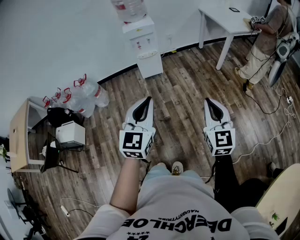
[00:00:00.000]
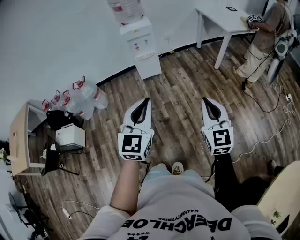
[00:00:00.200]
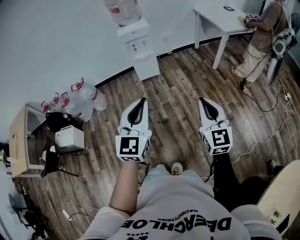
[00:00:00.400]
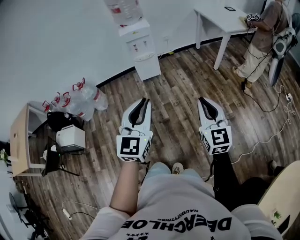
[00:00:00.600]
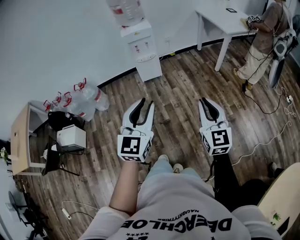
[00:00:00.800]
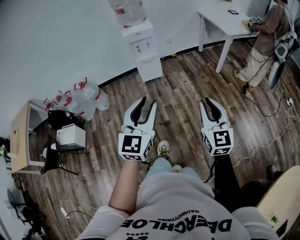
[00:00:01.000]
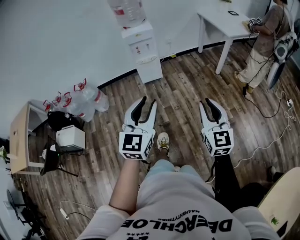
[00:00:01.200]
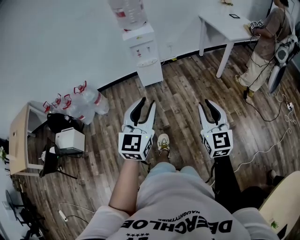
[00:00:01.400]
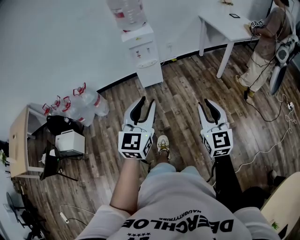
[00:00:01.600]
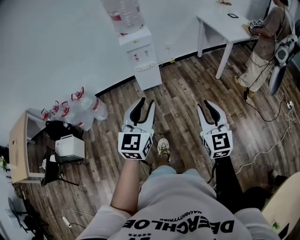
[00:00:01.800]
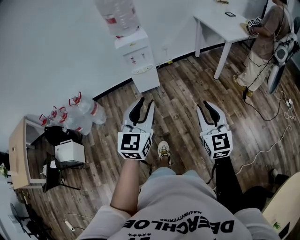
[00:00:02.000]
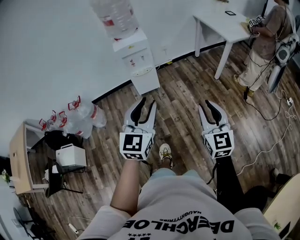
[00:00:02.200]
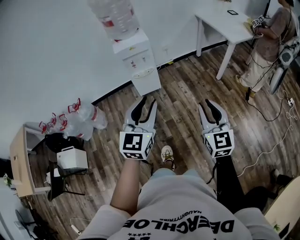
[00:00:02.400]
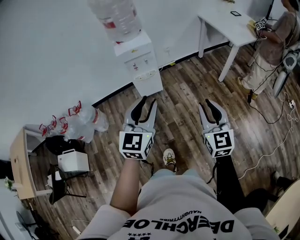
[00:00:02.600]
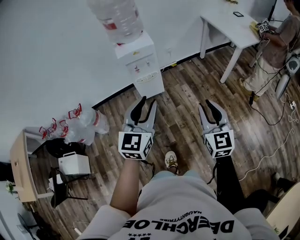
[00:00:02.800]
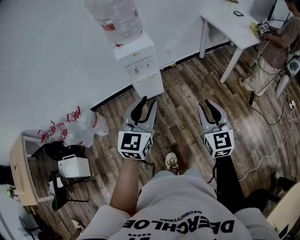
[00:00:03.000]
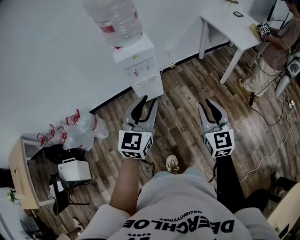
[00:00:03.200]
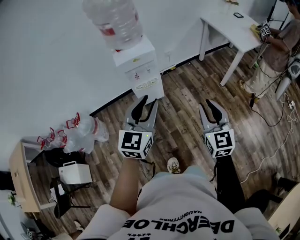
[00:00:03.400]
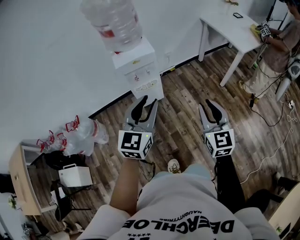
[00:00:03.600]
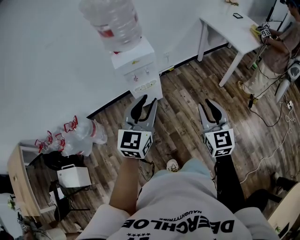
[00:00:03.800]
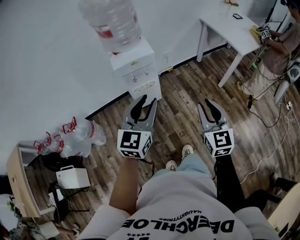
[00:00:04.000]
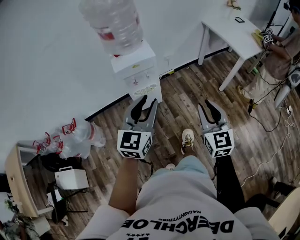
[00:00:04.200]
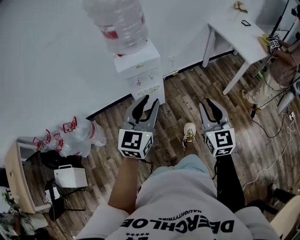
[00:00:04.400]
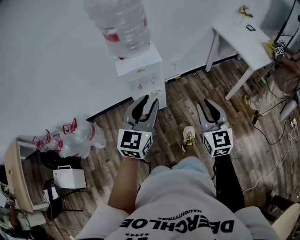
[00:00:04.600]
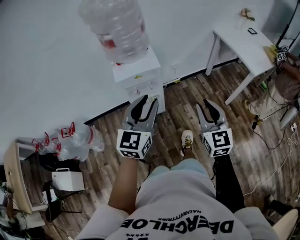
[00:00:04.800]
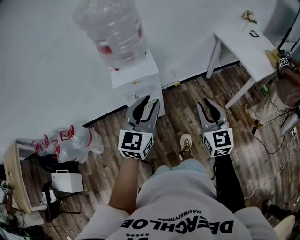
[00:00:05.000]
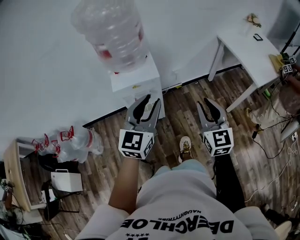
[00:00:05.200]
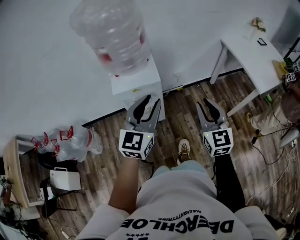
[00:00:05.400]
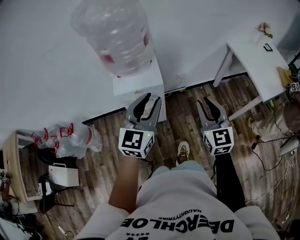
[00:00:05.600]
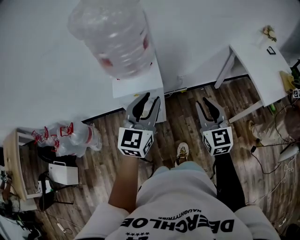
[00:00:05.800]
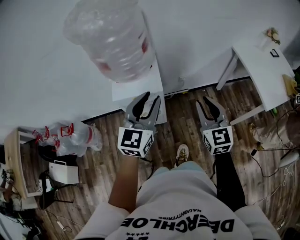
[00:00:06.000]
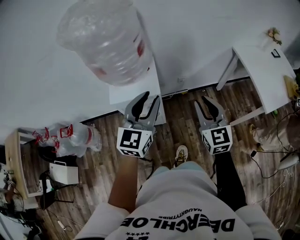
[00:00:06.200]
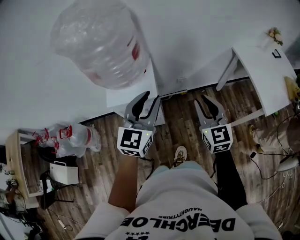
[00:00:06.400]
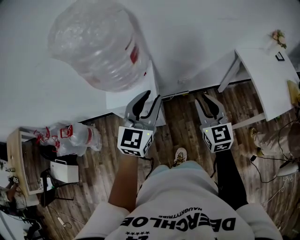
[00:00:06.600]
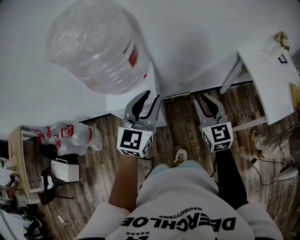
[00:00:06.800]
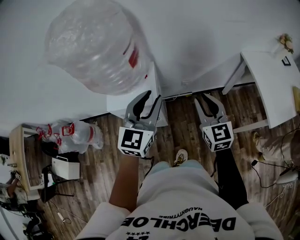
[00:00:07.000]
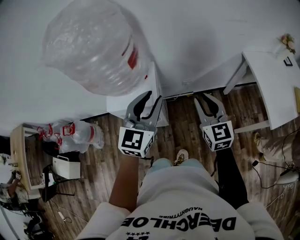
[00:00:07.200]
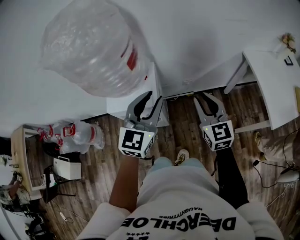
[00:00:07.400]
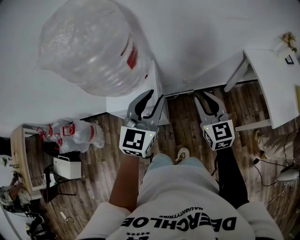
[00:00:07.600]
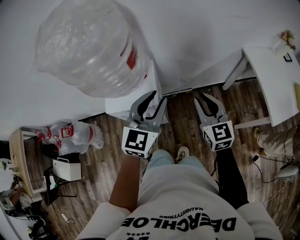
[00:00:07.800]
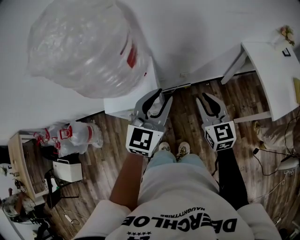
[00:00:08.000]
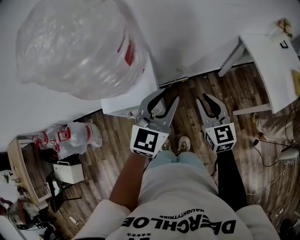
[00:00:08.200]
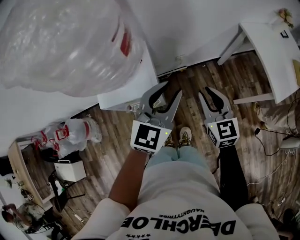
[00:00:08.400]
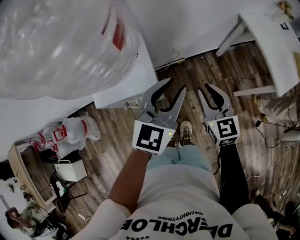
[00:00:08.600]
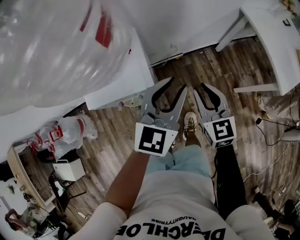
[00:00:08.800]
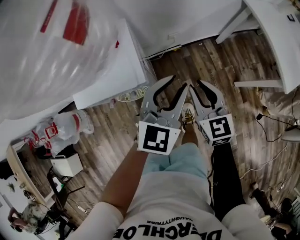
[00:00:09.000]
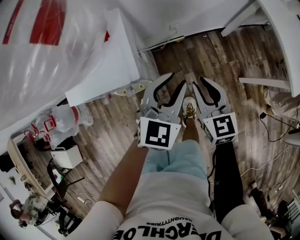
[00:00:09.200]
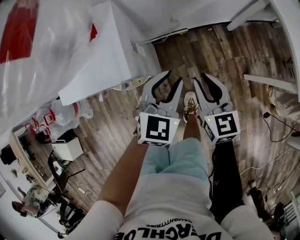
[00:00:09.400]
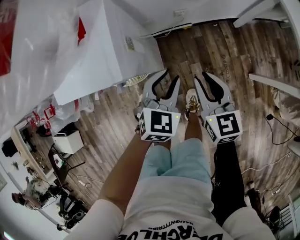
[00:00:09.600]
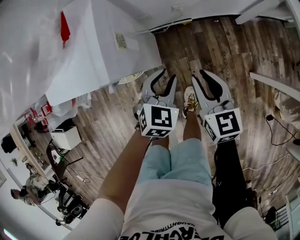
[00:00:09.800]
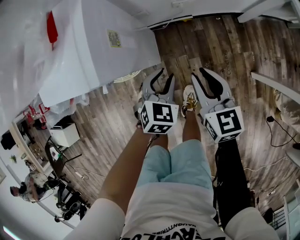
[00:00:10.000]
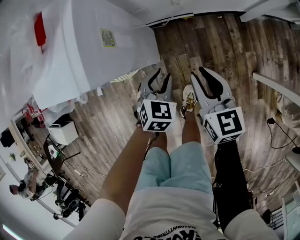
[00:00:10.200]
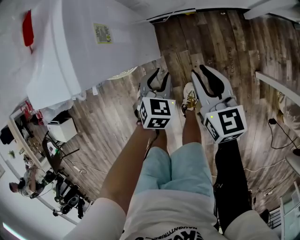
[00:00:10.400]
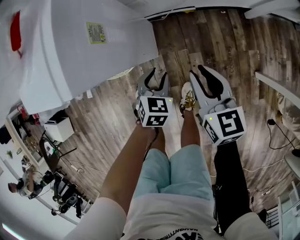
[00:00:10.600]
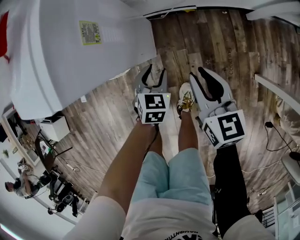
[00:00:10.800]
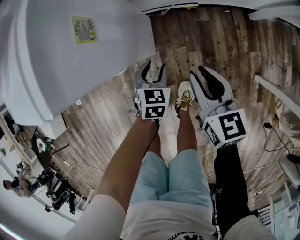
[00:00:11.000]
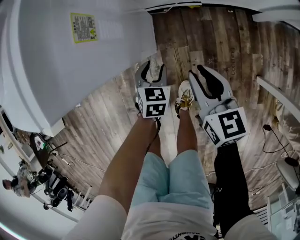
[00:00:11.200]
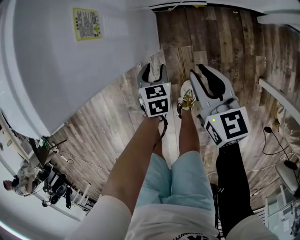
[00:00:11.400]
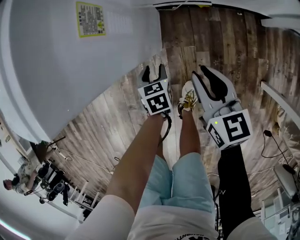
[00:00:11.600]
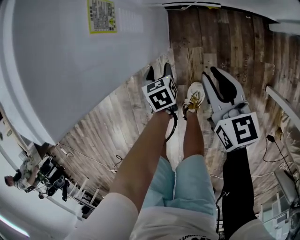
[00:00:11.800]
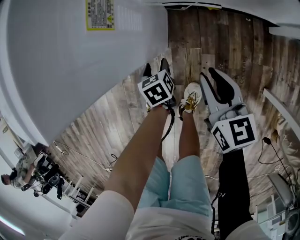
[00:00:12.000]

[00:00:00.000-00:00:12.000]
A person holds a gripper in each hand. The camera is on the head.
00:00:00.000 to 00:00:01.600: The grippers both shift forward by about 5 cm.
00:00:01.600 to 00:00:03.000: The grippers both shift forward by roughly 30 cm.
00:00:03.000 to 00:00:04.400: Both grippers move forward, roughly 15 cm.
00:00:04.400 to 00:00:06.000: Both grippers travel together forward, approximately 25 cm.
00:00:06.000 to 00:00:07.600: The right gripper heads forward, covering some 15 cm; the left gripper heads forward and to the right, covering roughly 10 cm.
00:00:07.600 to 00:00:09.000: The left gripper shifts roughly 15 cm downward and to the right, while the right gripper moves downward, approximately 15 cm.
00:00:09.000 to 00:00:10.400: The left gripper heads downward, covering some 35 cm, and points its fingers approximately 40 degrees further downward. The right gripper moves downward, some 20 cm, and turns by approximately 20 degrees.
00:00:10.400 to 00:00:12.000: The right gripper heads downward, covering roughly 10 cm; the left gripper heads downward and to the left, covering approximately 20 cm, and rotates around the line of its fingers by approximately 60 degrees, counterclockwise from behind.

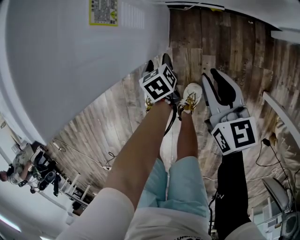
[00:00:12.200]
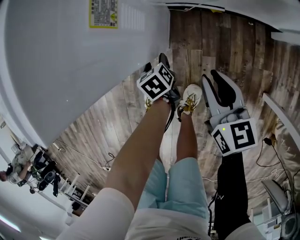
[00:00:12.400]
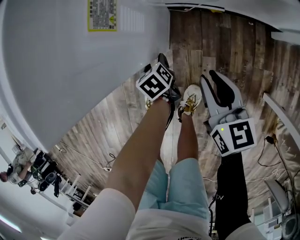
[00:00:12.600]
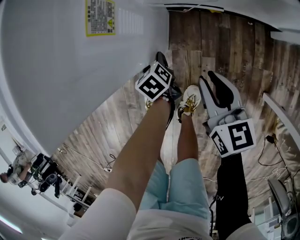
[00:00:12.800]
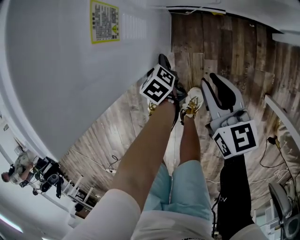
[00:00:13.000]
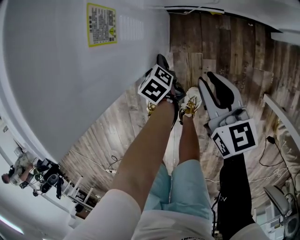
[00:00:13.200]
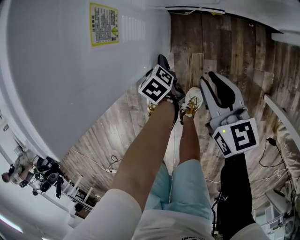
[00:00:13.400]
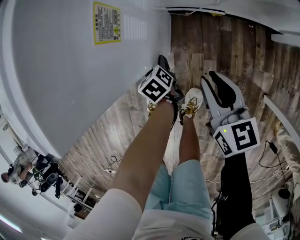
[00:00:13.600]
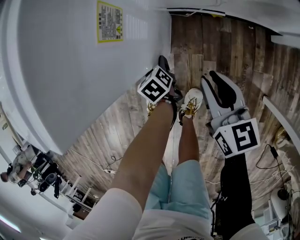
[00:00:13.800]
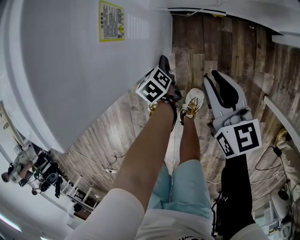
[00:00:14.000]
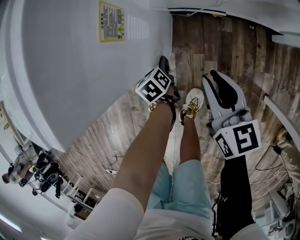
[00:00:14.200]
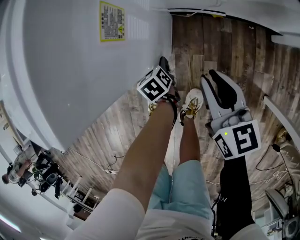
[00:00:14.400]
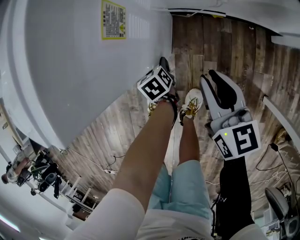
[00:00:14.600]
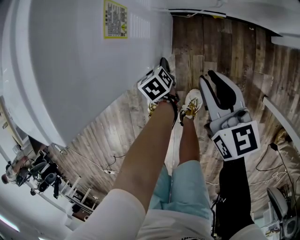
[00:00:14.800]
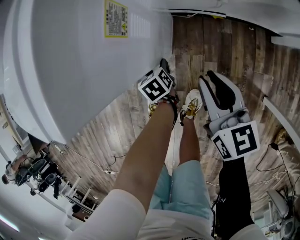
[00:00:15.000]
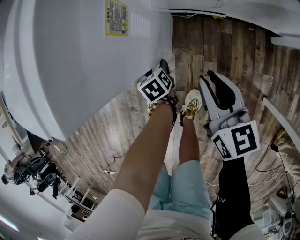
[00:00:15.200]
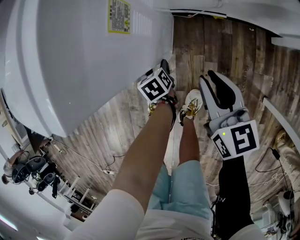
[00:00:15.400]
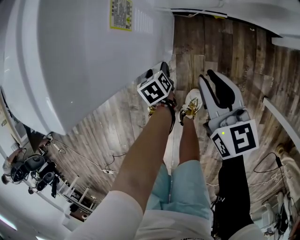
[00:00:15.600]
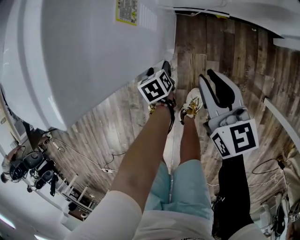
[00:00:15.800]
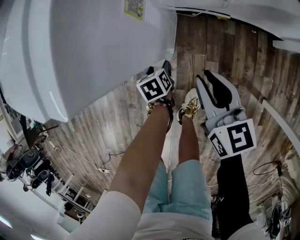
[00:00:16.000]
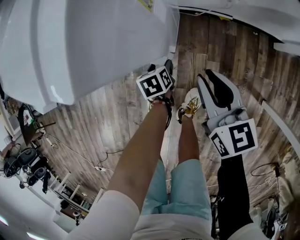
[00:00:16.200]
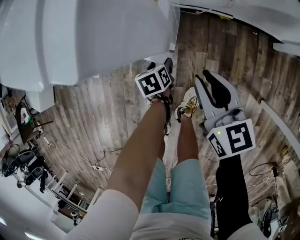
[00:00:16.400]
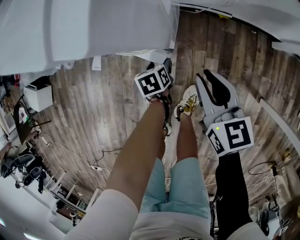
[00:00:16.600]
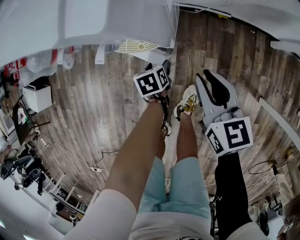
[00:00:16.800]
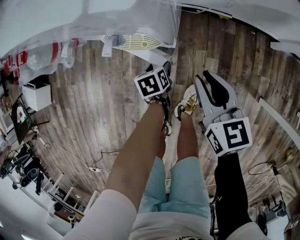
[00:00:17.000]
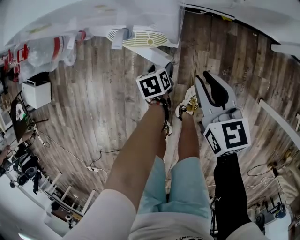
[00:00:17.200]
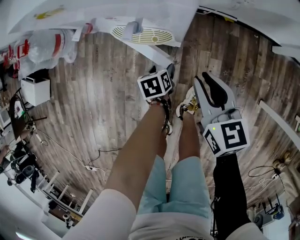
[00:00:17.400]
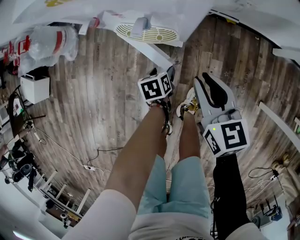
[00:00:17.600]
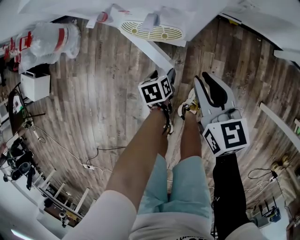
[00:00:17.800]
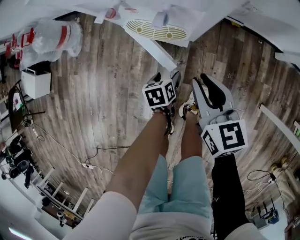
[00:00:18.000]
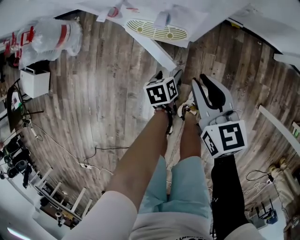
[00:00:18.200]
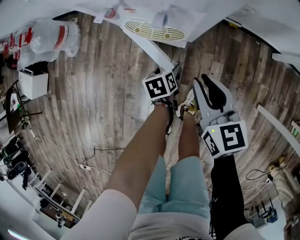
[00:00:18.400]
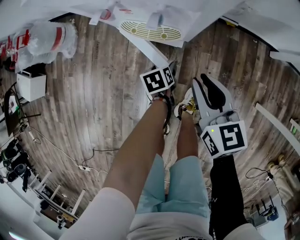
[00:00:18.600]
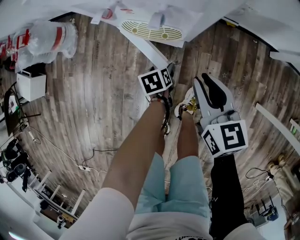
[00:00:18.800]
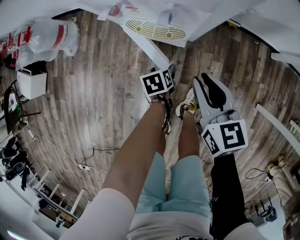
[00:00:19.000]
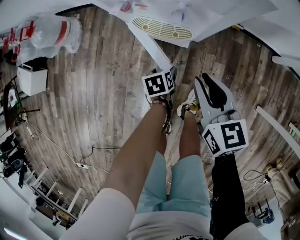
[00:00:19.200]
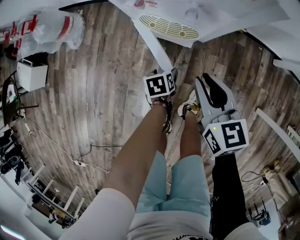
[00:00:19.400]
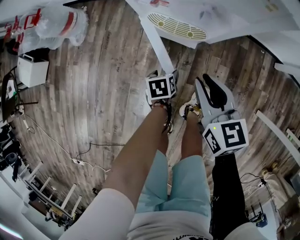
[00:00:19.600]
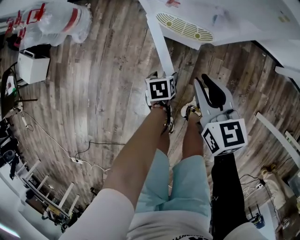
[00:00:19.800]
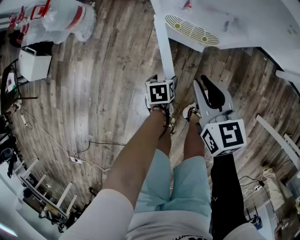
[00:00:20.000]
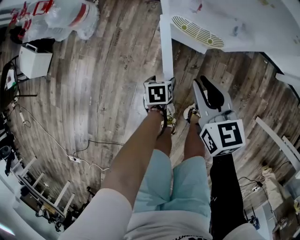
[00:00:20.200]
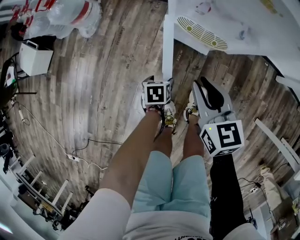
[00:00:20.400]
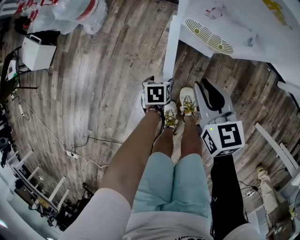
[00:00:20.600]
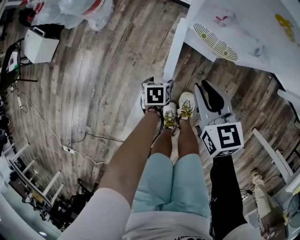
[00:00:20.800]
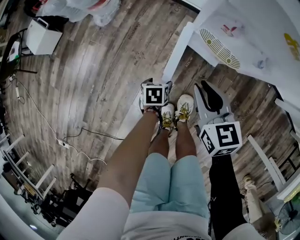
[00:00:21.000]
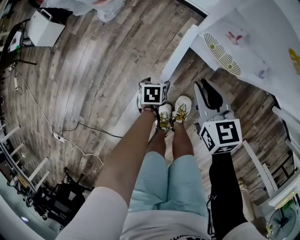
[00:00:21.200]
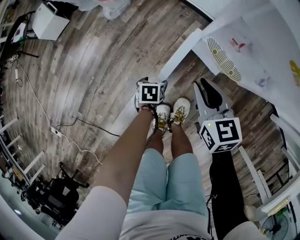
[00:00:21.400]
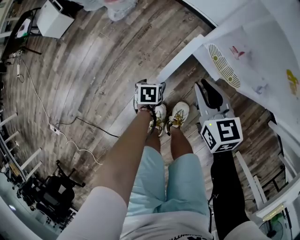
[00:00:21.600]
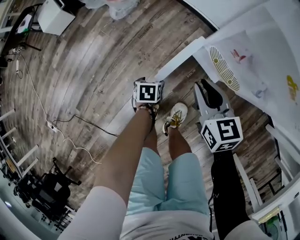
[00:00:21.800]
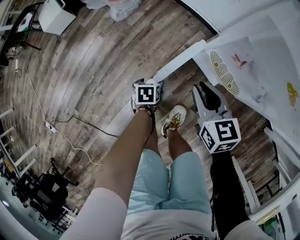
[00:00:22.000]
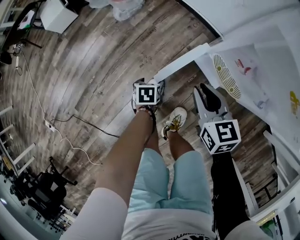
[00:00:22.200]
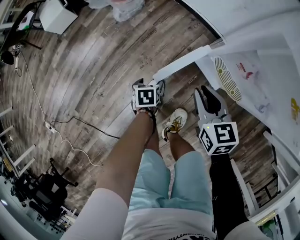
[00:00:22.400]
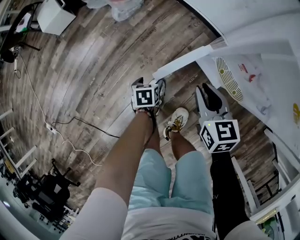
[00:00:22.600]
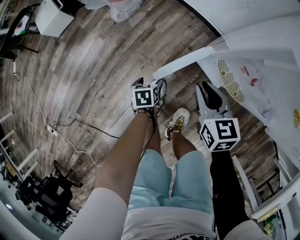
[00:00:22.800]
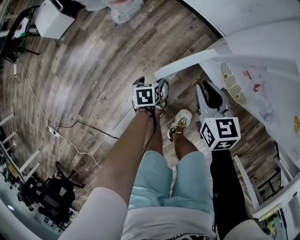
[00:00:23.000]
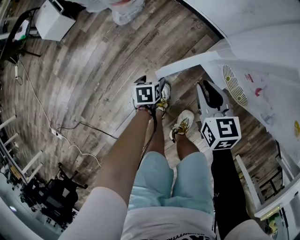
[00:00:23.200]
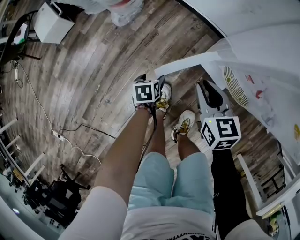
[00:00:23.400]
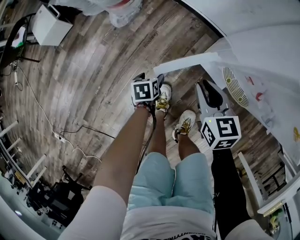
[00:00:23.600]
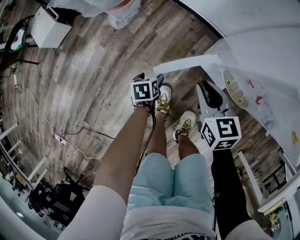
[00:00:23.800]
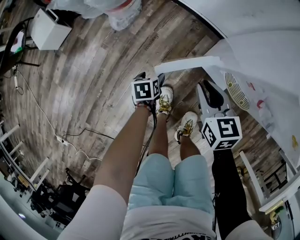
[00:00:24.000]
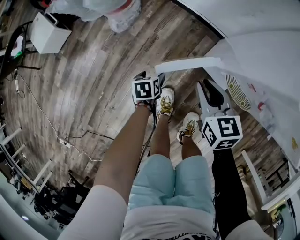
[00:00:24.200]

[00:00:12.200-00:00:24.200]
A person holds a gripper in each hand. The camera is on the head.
00:00:12.200 to 00:00:15.200: The grippers stay close to where they were, moving slightly.
00:00:15.200 to 00:00:16.600: The right gripper shifts roughly 5 cm to the left.
00:00:16.600 to 00:00:18.200: The left gripper shifts approximately 10 cm backward. The right gripper heads to the left, covering some 10 cm.
00:00:18.200 to 00:00:19.800: The grippers both shift to the left by about 10 cm.
00:00:19.800 to 00:00:21.200: Both grippers travel together to the left, roughly 15 cm.
00:00:21.200 to 00:00:22.600: The left gripper moves roughly 10 cm. The right gripper moves approximately 5 cm.
00:00:22.600 to 00:00:24.200: Both grippers move forward and to the left, approximately 10 cm.
